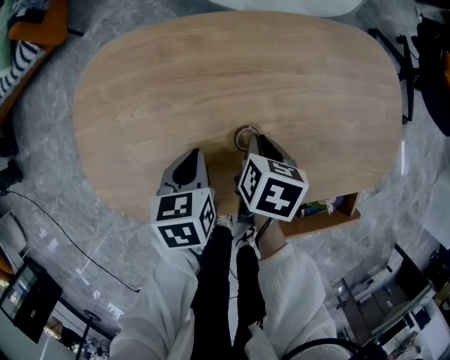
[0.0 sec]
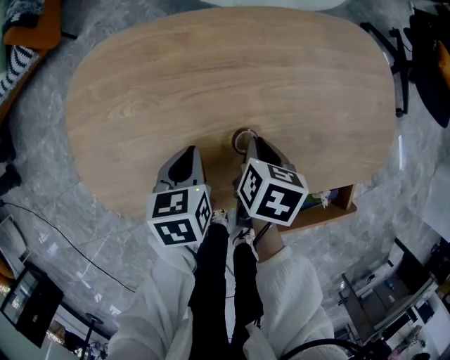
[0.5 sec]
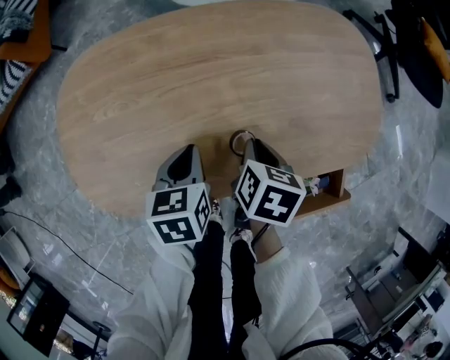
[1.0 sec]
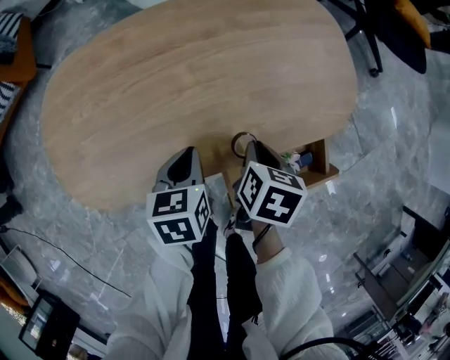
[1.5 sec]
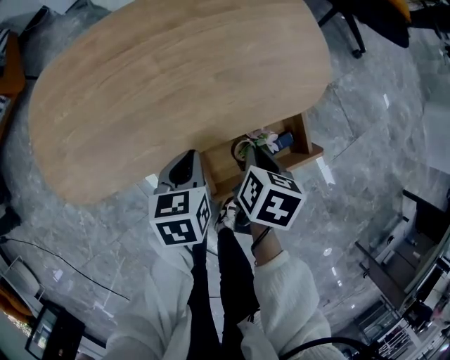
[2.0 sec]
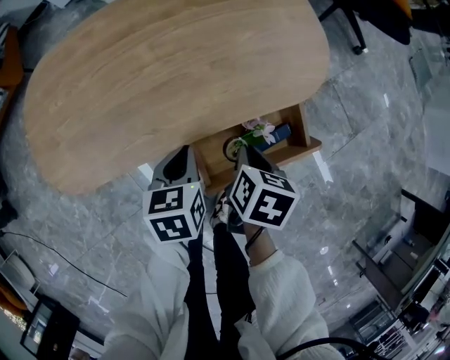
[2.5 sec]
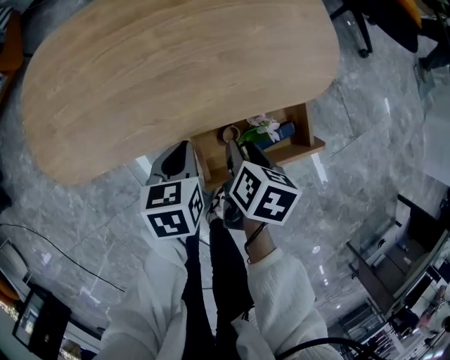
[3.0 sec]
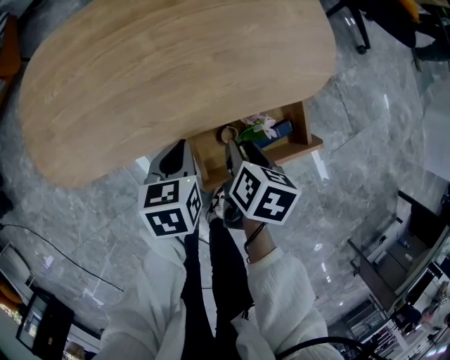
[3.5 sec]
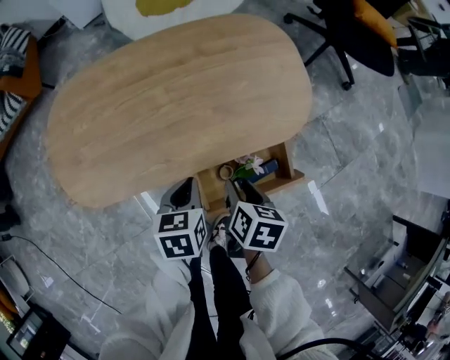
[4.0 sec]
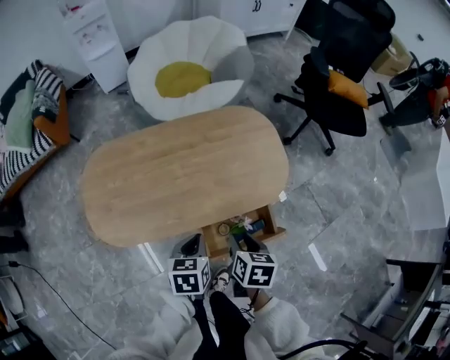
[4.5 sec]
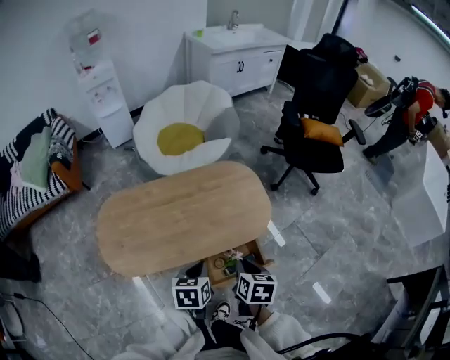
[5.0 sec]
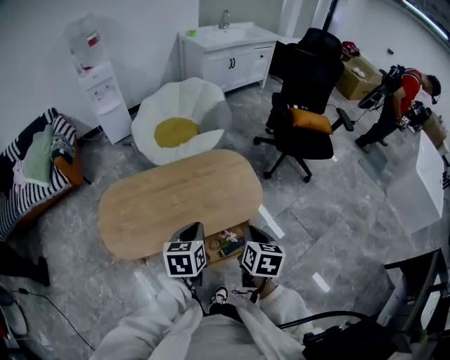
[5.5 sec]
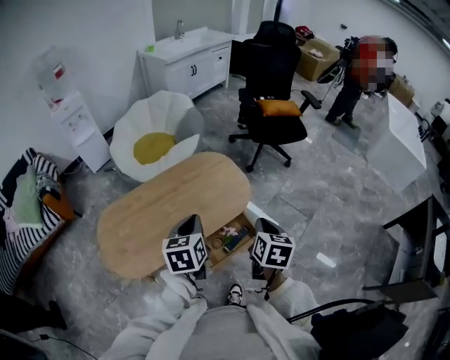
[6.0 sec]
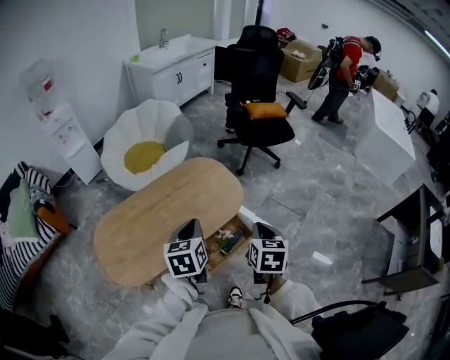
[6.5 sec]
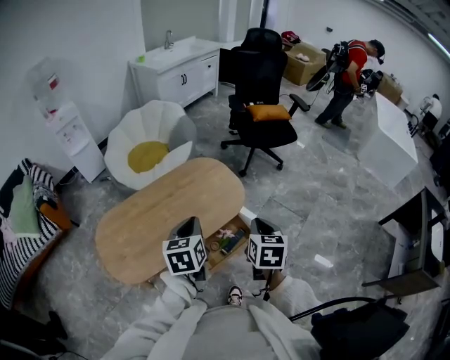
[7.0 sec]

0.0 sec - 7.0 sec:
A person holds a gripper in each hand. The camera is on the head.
0.0 sec - 2.0 sec: The grippers both shift to the right and backward by about 25 cm.
2.0 sec - 3.5 sec: The right gripper opens its fingers.
3.5 sec - 5.0 sec: The two grippers go about 30 cm upward. The right gripper closes up.
5.0 sec - 7.0 sec: The right gripper moves upward and to the right, some 15 cm, and changes its angle by about 30 degrees. Meanwhile the left gripper goes about 15 cm upward, and swivels roughly 20 degrees.

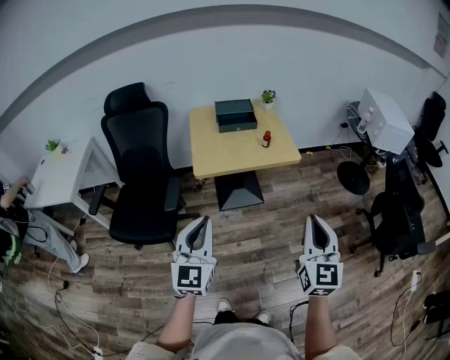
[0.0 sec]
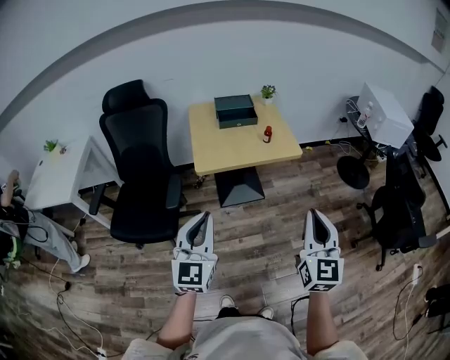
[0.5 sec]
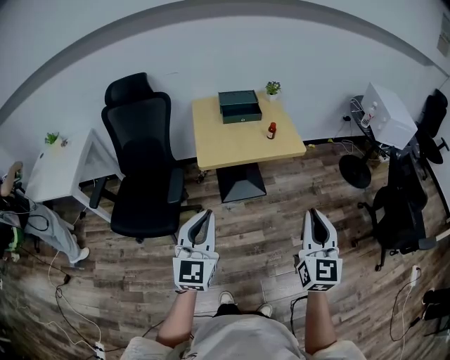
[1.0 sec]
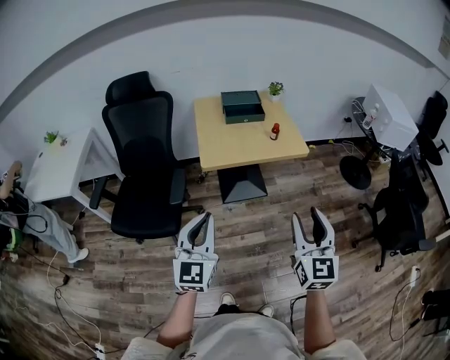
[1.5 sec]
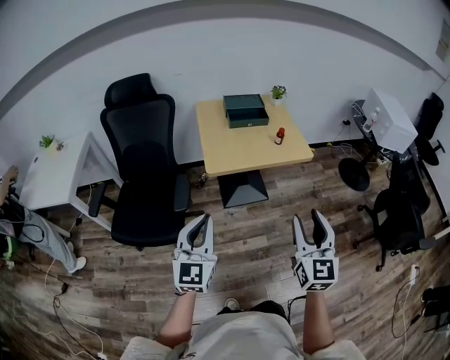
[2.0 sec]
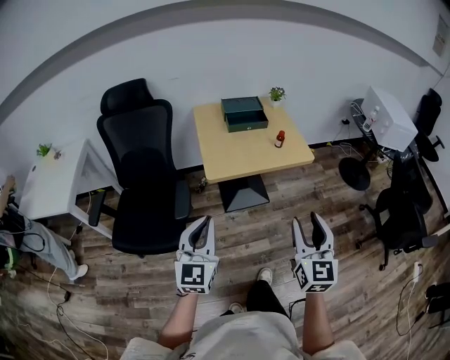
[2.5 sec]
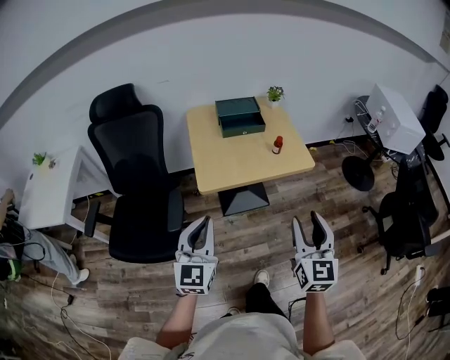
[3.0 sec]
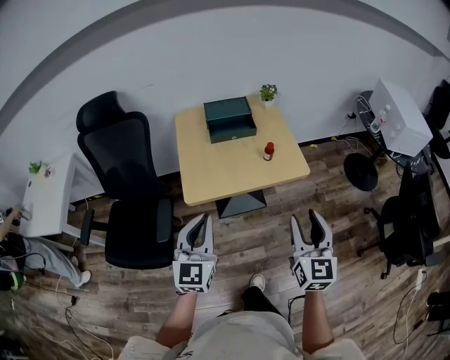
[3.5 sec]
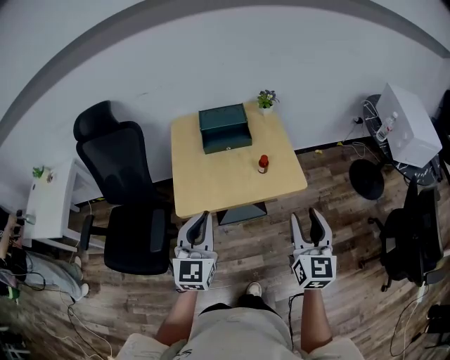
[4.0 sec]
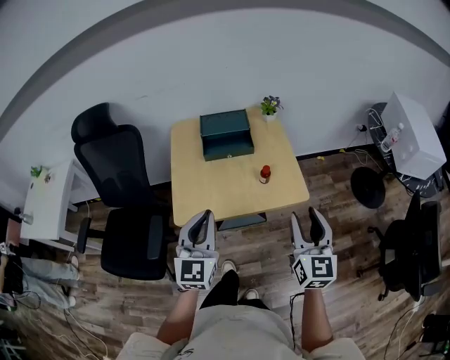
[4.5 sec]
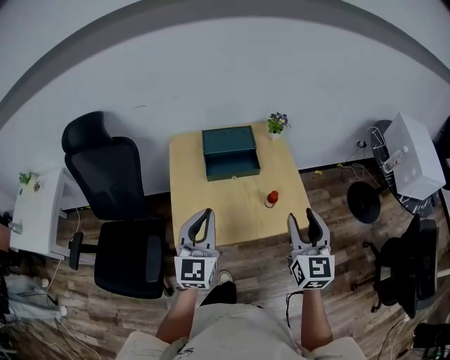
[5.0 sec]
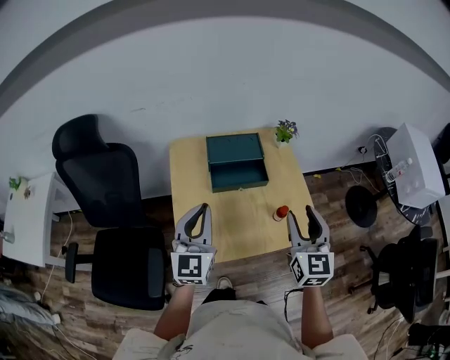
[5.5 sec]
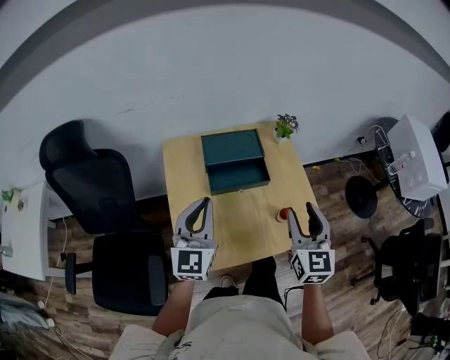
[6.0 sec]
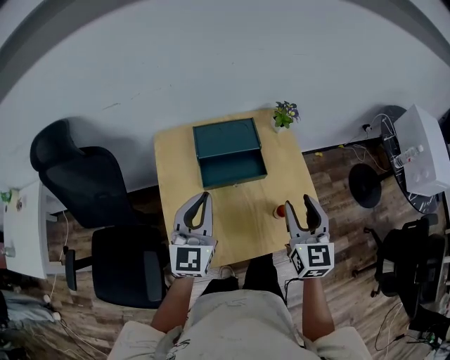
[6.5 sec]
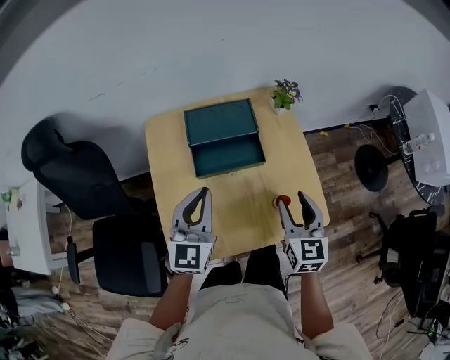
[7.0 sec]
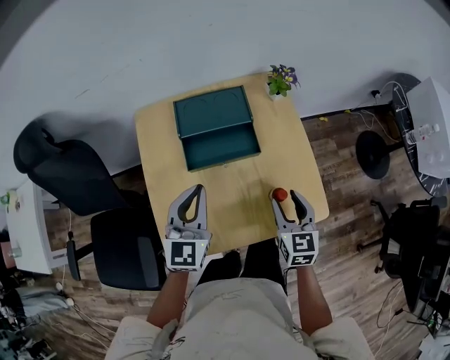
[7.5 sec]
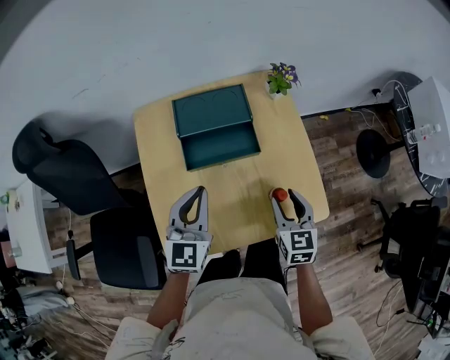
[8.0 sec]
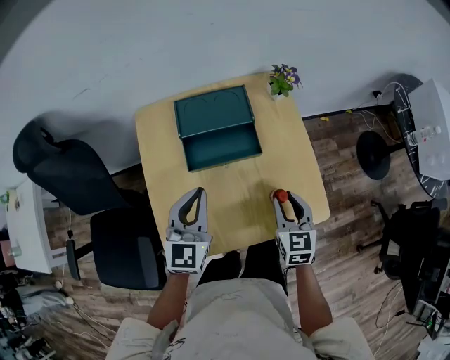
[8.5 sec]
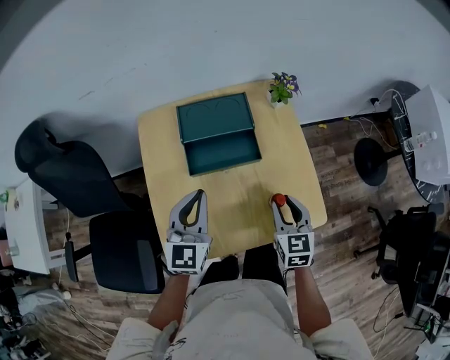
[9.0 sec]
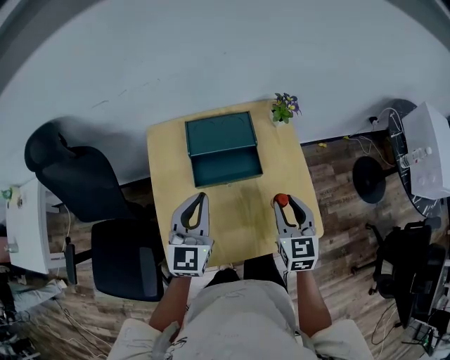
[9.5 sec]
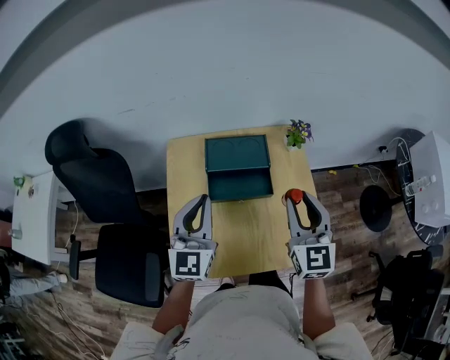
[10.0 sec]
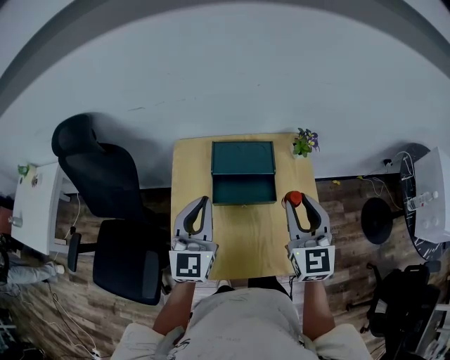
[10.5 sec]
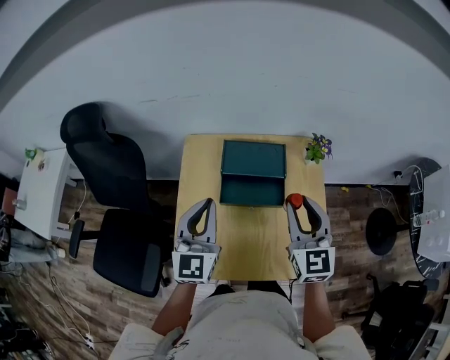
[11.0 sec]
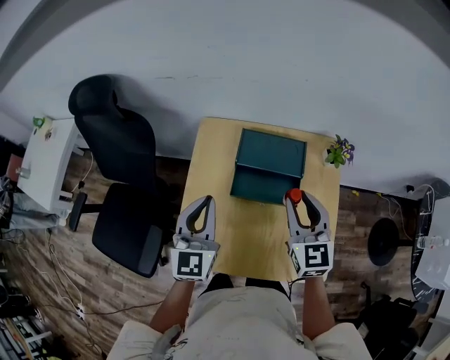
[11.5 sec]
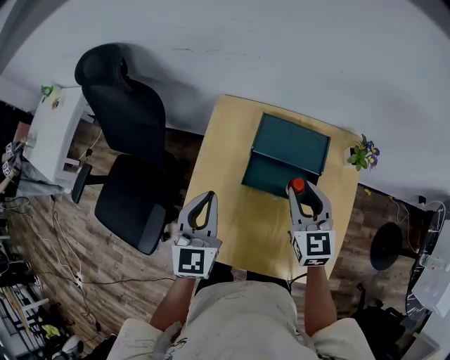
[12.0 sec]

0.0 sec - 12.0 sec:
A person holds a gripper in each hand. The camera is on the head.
0.0 sec - 2.0 sec: The two grippers go about 10 cm to the left. The right gripper opens up.
2.0 sec - 4.0 sec: Both grippers move forward and to the right, roughly 30 cm.
4.0 sec - 6.0 sec: The right gripper shifts about 30 cm forward and to the left, while the left gripper shifts approximately 30 cm forward.
6.0 sec - 8.0 sec: The left gripper travels downward and to the right by about 10 cm, while the right gripper heads downward, covering roughly 20 cm, and changes its angle by about 20 degrees.
8.0 sec - 10.0 sec: The left gripper shifts about 10 cm upward. Meanwhile the right gripper is displaced upward by some 20 cm, and rotates some 20 degrees.
10.0 sec - 12.0 sec: The right gripper shifts roughly 20 cm forward, downward and to the left, and rotates about 30 degrees. Meanwhile the left gripper moves to the left and downward, approximately 10 cm, and changes its angle by about 30 degrees.

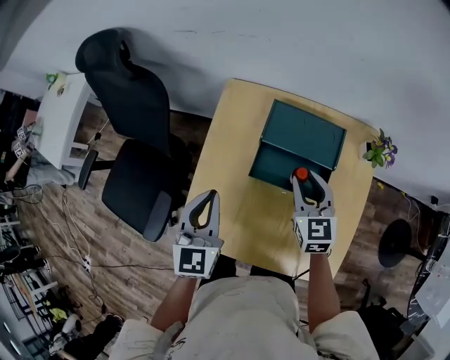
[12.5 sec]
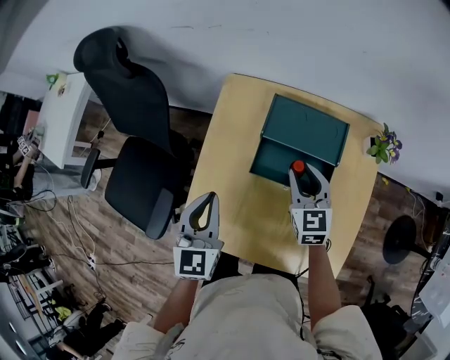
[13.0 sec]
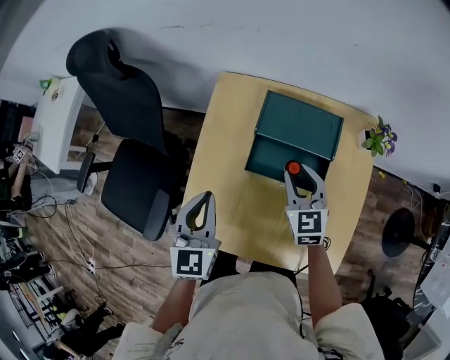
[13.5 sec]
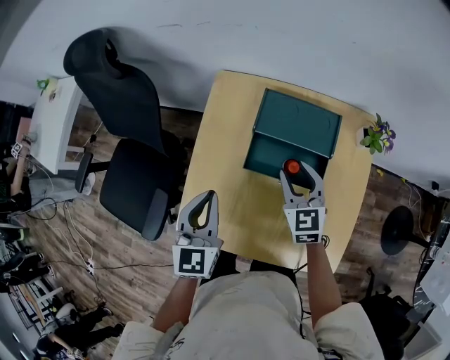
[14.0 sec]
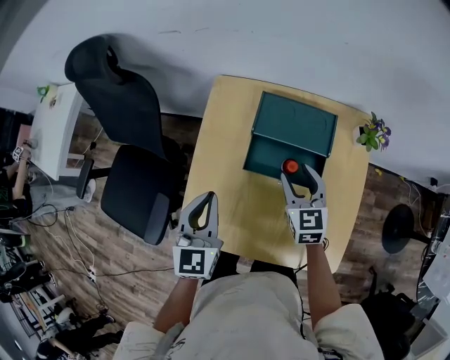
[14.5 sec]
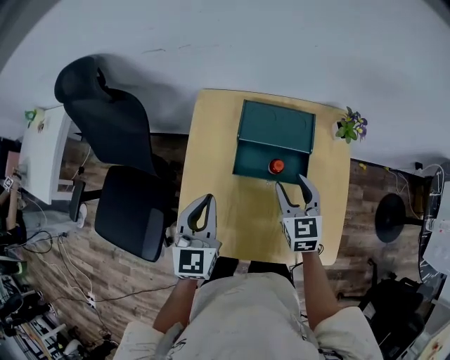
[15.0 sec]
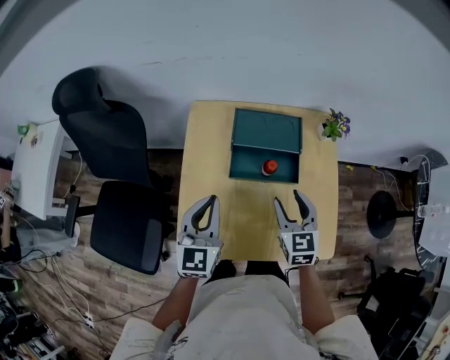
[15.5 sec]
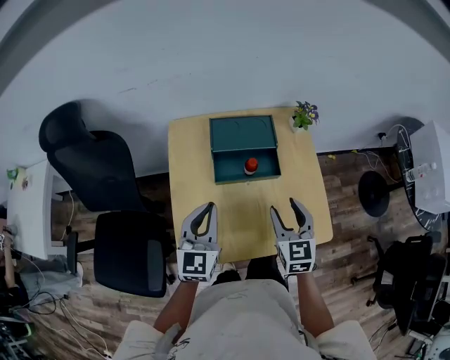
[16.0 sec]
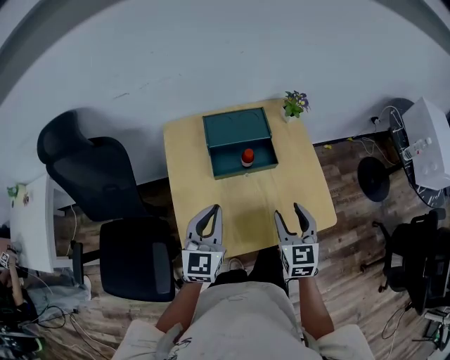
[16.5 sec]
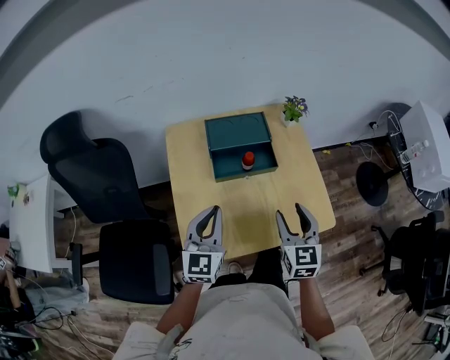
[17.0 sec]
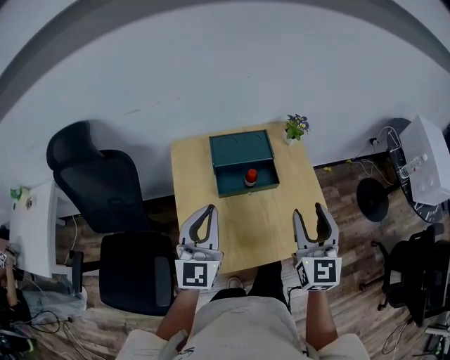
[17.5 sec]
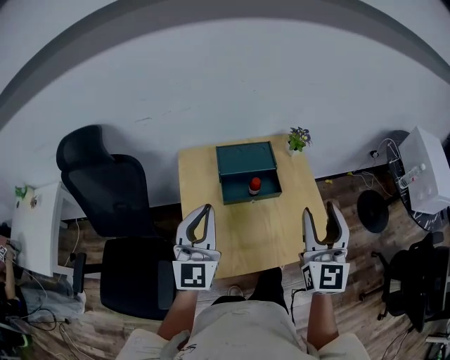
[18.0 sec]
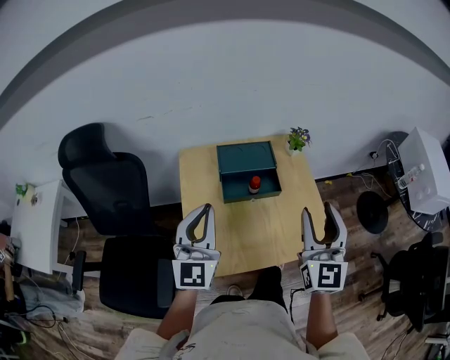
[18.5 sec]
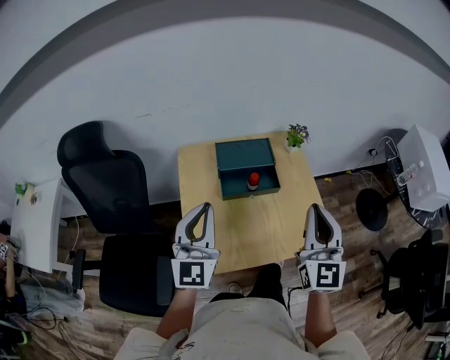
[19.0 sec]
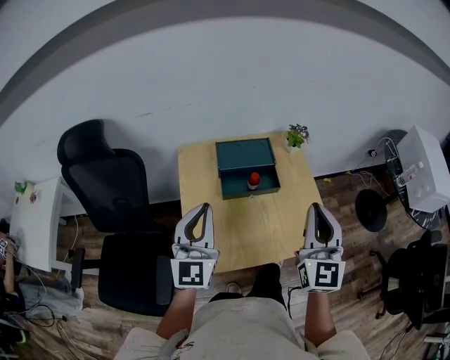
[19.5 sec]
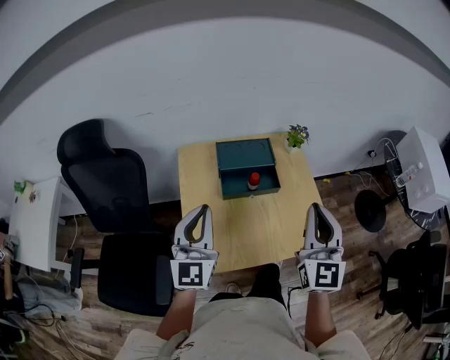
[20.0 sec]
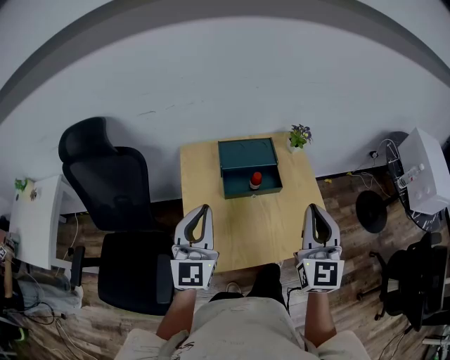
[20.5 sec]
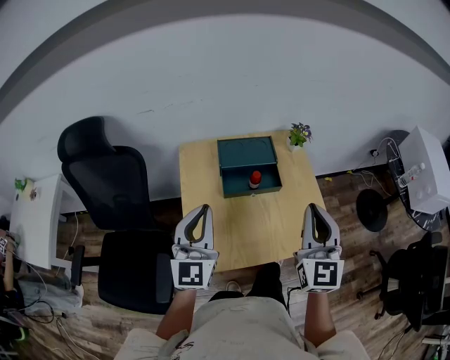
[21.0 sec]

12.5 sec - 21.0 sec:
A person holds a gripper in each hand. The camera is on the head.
12.5 sec - 14.5 sec: The right gripper opens its fingers.
14.5 sec - 16.5 sec: The right gripper shifts by some 20 cm, and rotates some 30 degrees. Meanwhile the left gripper moves approximately 10 cm, and changes its angle by roughly 30 degrees.
16.5 sec - 19.0 sec: The left gripper goes about 15 cm upward, while the right gripper is displaced upward by about 20 cm, turns by some 30 degrees, and closes up.
19.0 sec - 21.0 sec: The grippers stay close to where they were, moving slightly.
